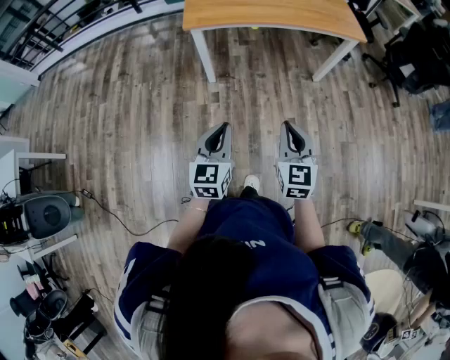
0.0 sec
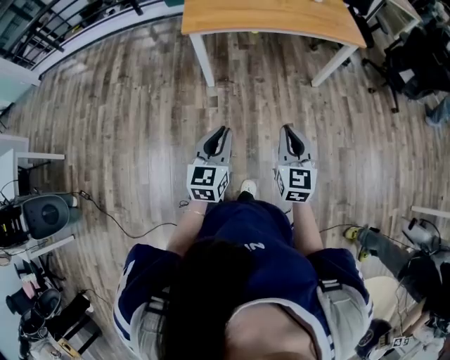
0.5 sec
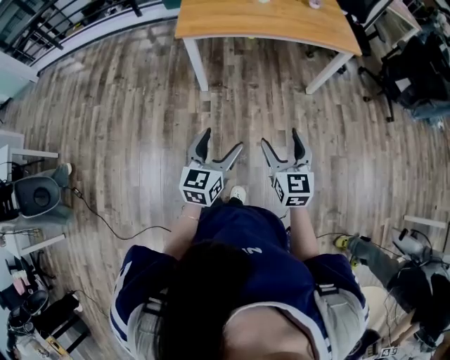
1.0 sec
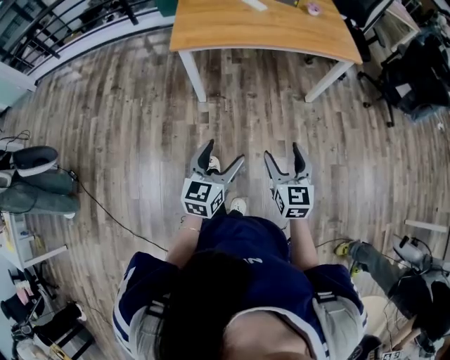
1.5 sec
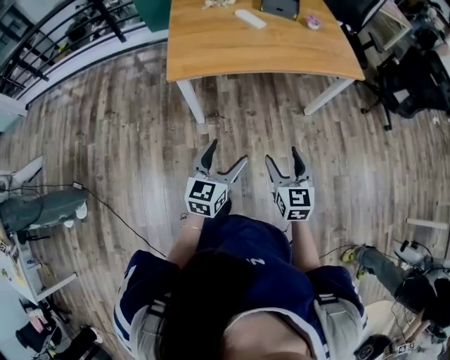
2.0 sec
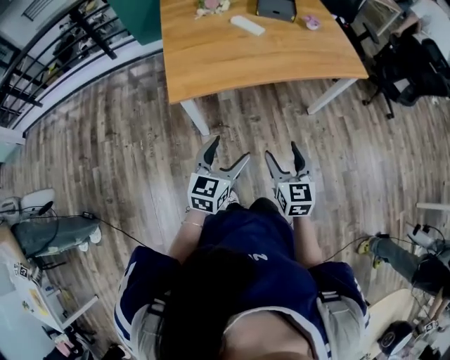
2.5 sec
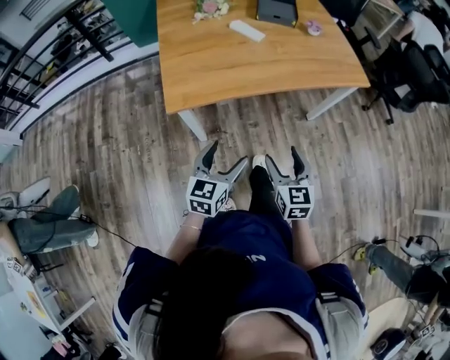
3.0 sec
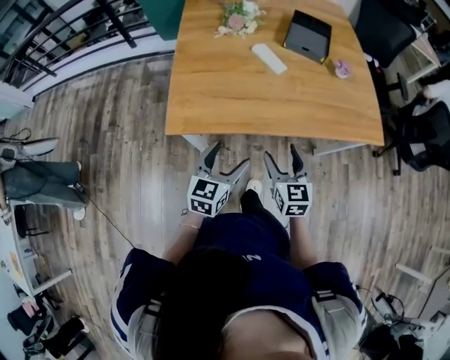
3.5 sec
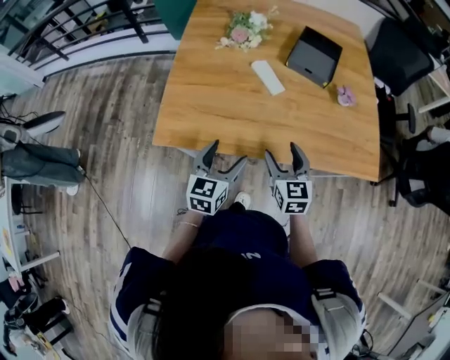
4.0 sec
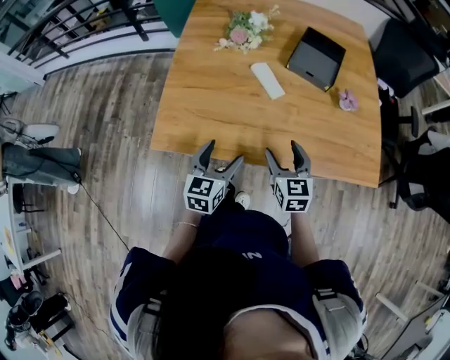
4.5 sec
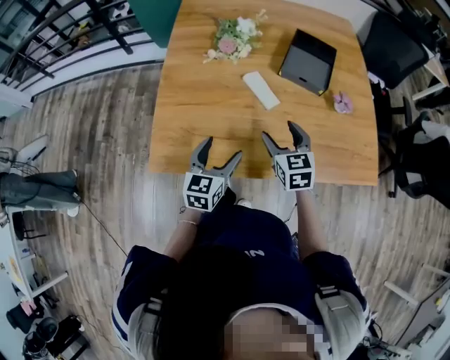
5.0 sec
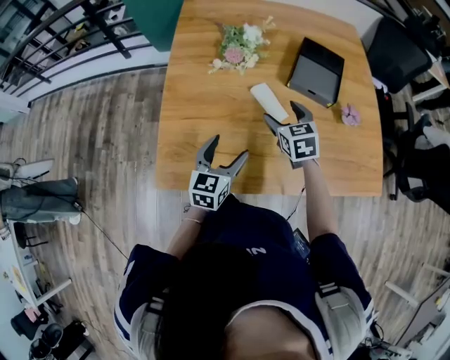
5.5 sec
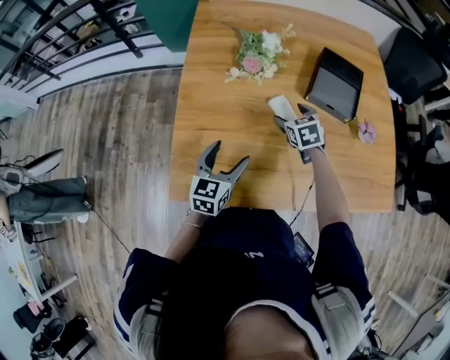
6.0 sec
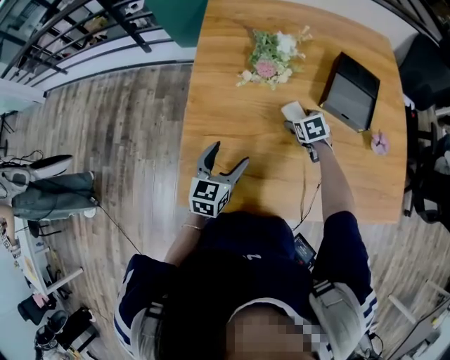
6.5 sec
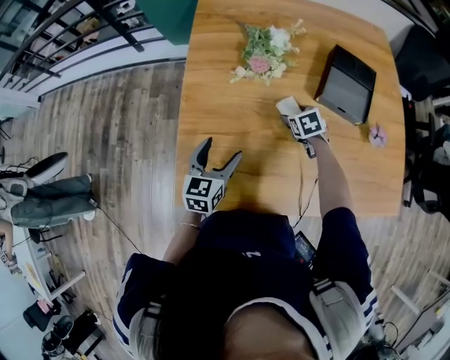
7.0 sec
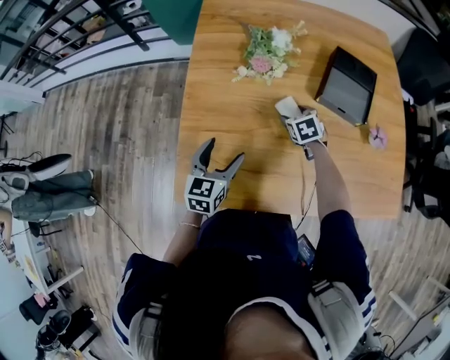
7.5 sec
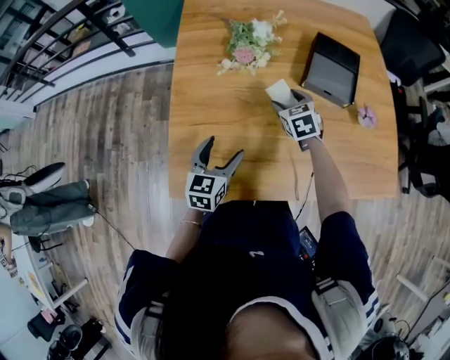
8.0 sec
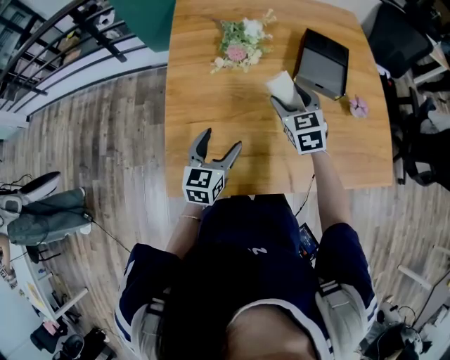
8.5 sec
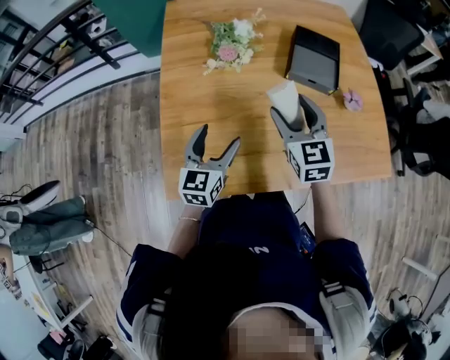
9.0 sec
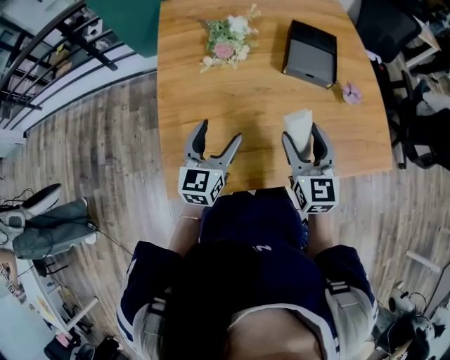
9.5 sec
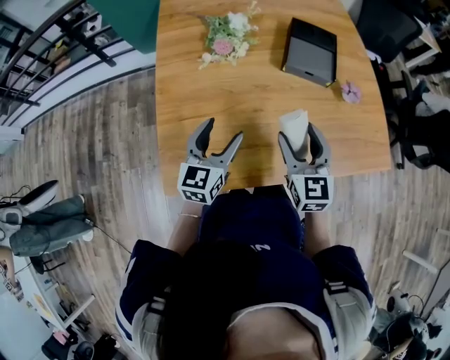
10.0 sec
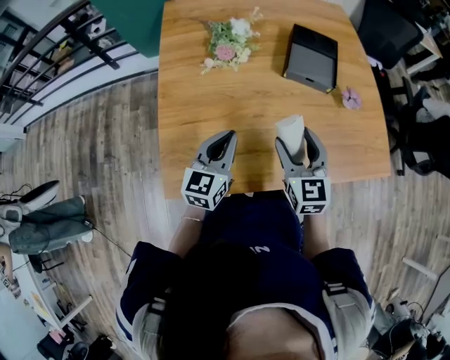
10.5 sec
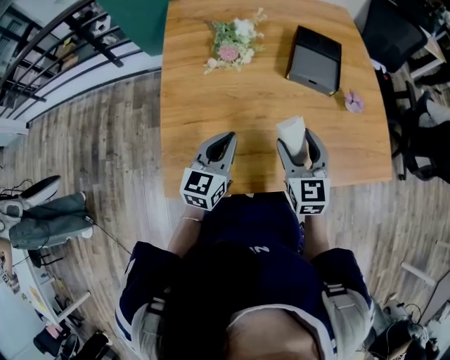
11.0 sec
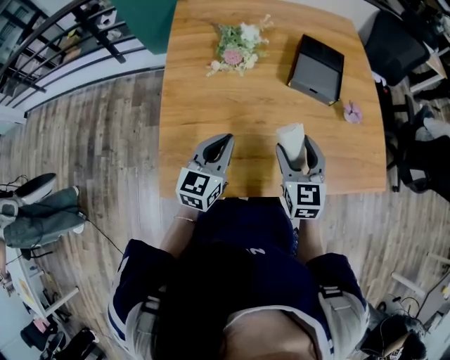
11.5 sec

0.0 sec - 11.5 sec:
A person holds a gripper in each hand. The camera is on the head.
0.0 sec - 2.0 sec: The two grippers go some 20 cm forward. The right gripper opens. The left gripper opens its fingers.
2.0 sec - 4.0 sec: Both grippers travel together forward, approximately 40 cm.
4.0 sec - 6.0 sec: The right gripper is displaced forward by some 30 cm, and rotates approximately 30 degrees. Meanwhile the left gripper travels forward and to the left by some 20 cm.
6.0 sec - 7.5 sec: The right gripper goes about 5 cm downward.
7.5 sec - 9.5 sec: The right gripper moves upward and backward, some 30 cm, and points its fingers about 40 degrees further upward. Meanwhile the left gripper travels upward by approximately 5 cm.
9.5 sec - 11.5 sec: The left gripper closes.

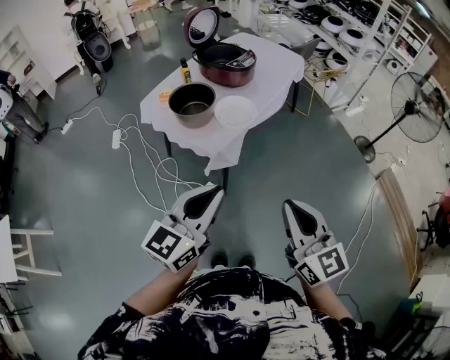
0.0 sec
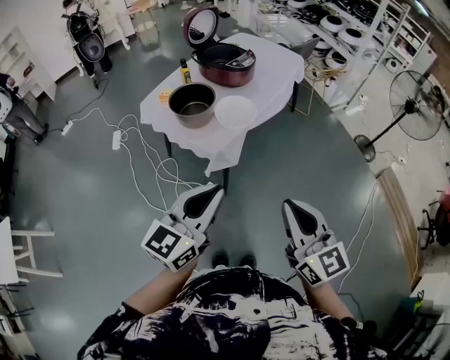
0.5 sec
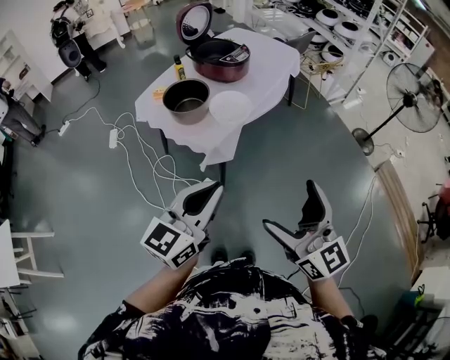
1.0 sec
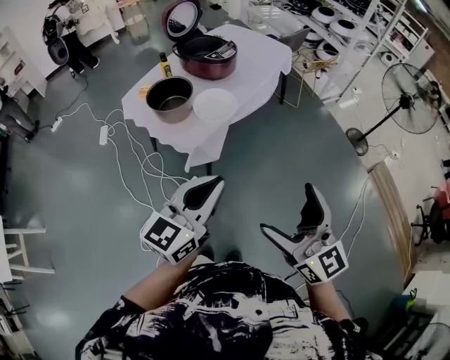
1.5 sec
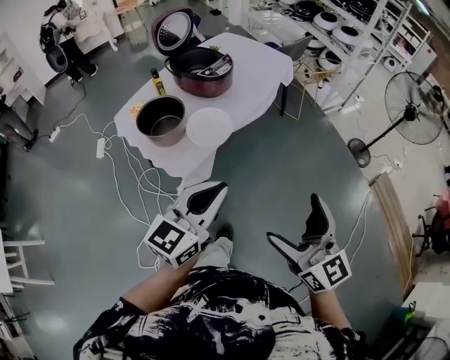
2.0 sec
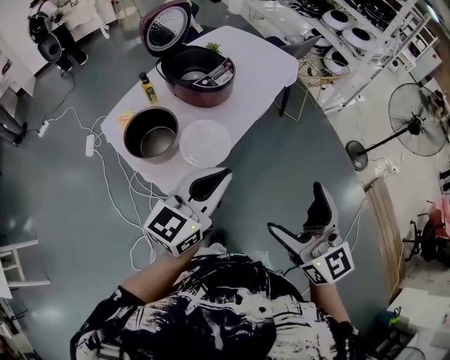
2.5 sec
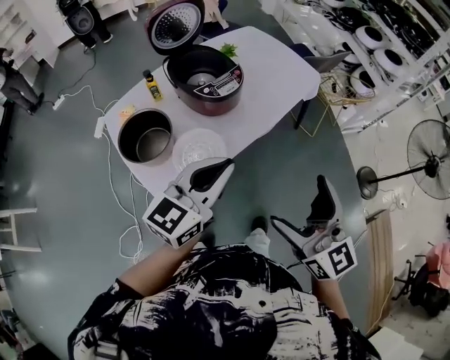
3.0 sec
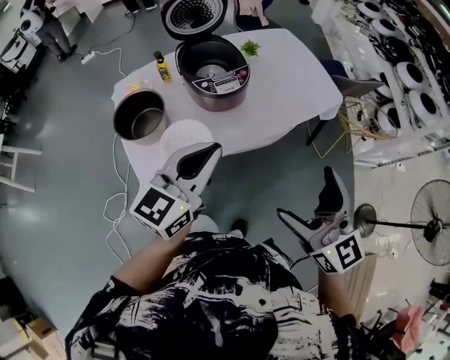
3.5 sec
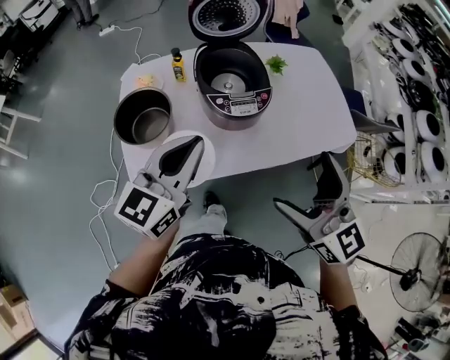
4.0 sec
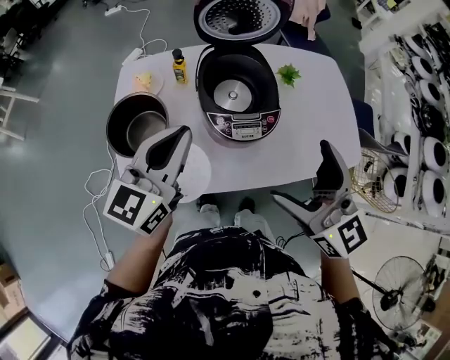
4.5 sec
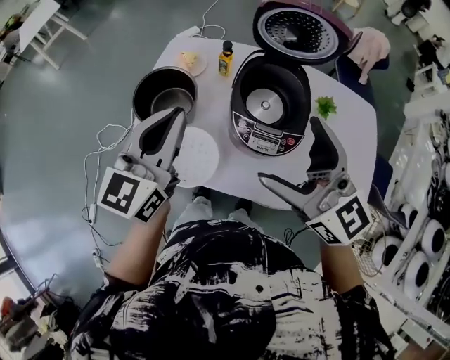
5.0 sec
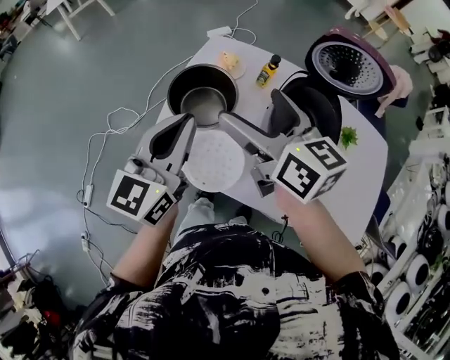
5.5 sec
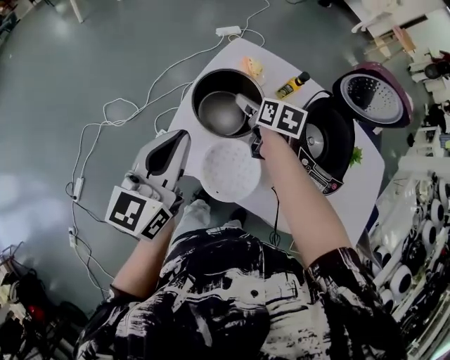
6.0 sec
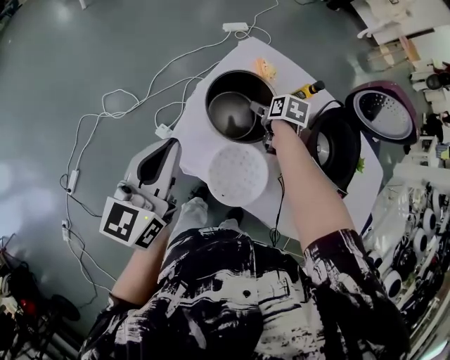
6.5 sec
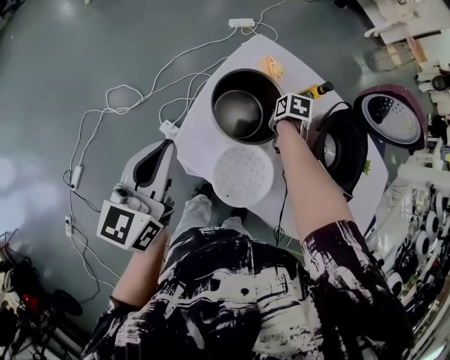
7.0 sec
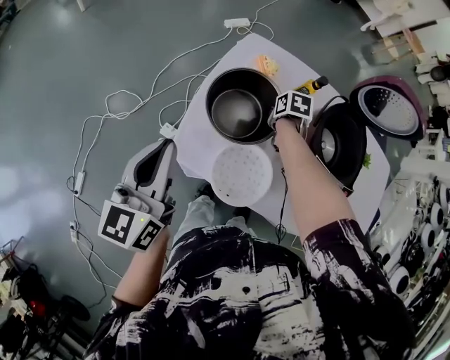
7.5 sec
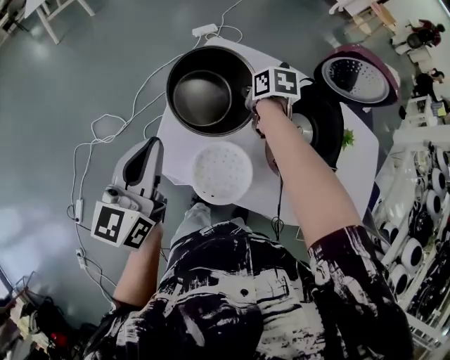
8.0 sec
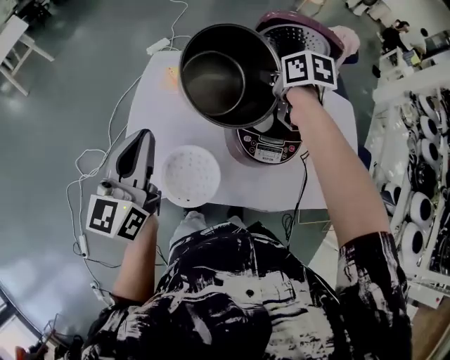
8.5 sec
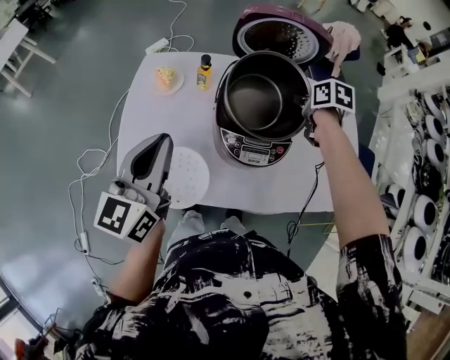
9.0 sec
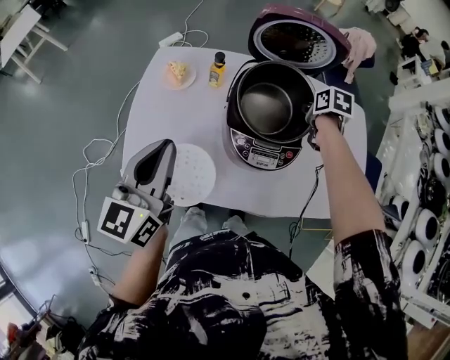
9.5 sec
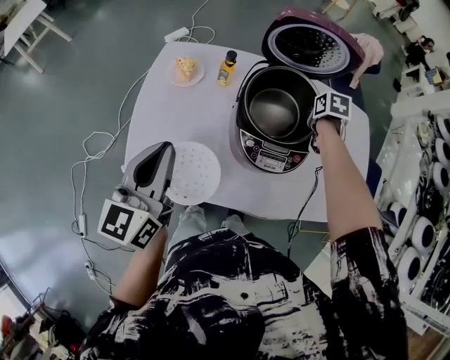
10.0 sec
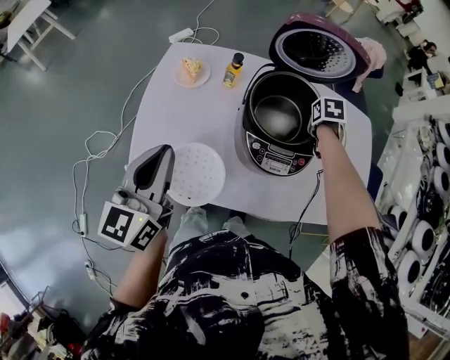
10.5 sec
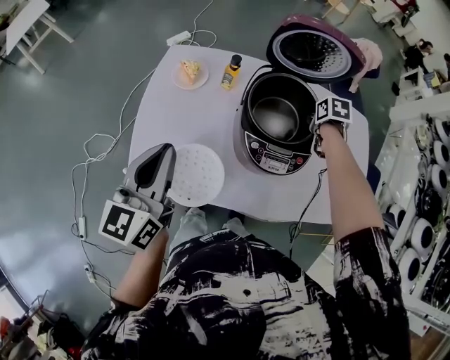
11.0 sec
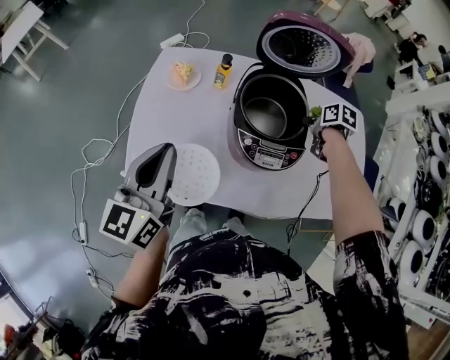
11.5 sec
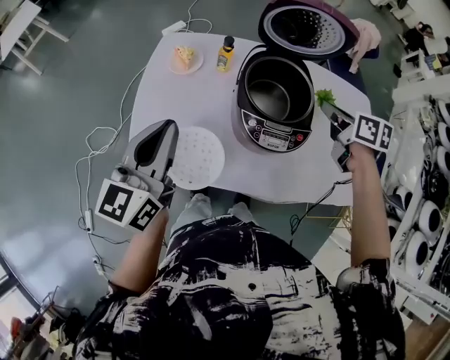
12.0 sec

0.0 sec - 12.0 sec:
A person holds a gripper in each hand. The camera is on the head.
0.0 sec - 2.0 sec: Both grippers move forward and to the right, about 20 cm. The right gripper opens up.
2.0 sec - 4.0 sec: The two grippers travel together, approximately 50 cm. The right gripper turns by about 50 degrees, while the left gripper swivels some 50 degrees.
4.0 sec - 6.0 sec: The right gripper ends up about 50 cm from where it was, and angles its fingers downward, by roughly 40 degrees. Meanwhile the left gripper shifts by roughly 25 cm, and changes its angle by roughly 50 degrees.
6.0 sec - 8.0 sec: The right gripper moves approximately 10 cm downward and comes back, and closes its fingers.
8.0 sec - 10.0 sec: The left gripper shifts by about 20 cm; the right gripper reaches roughly 15 cm upward, then returns, and turns by roughly 30 degrees.
10.0 sec - 12.0 sec: The right gripper moves upward and backward, approximately 15 cm, and changes its angle by about 30 degrees.

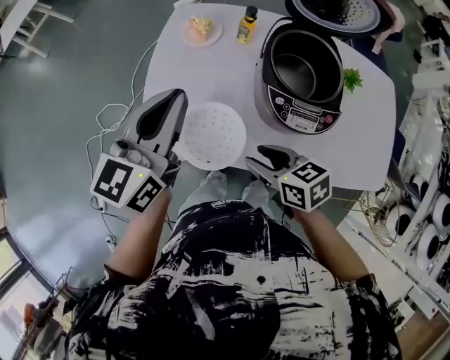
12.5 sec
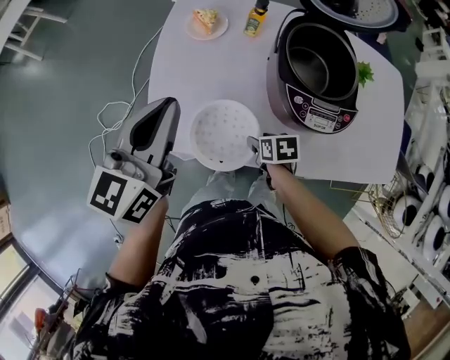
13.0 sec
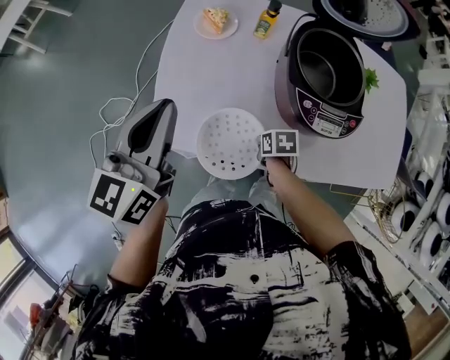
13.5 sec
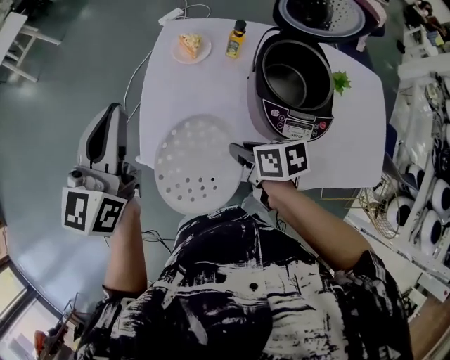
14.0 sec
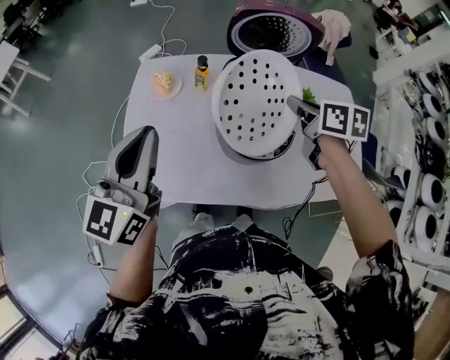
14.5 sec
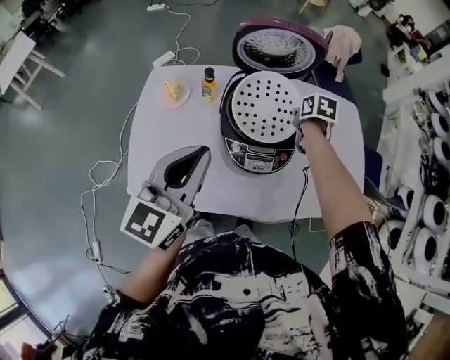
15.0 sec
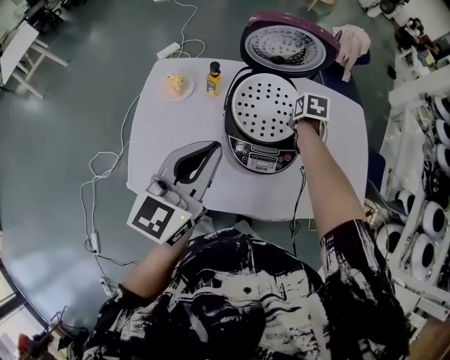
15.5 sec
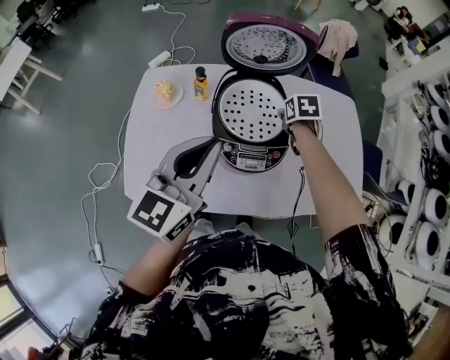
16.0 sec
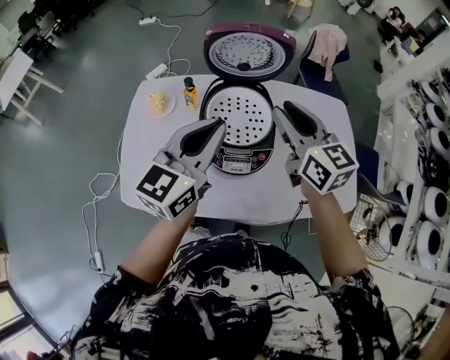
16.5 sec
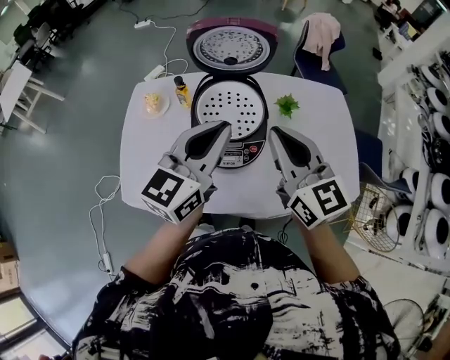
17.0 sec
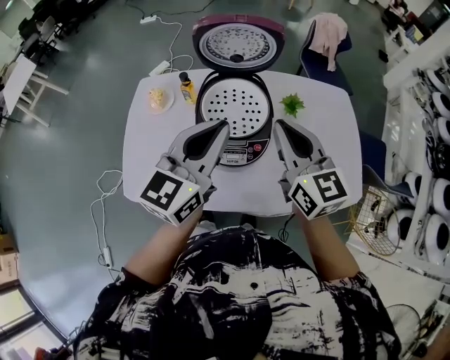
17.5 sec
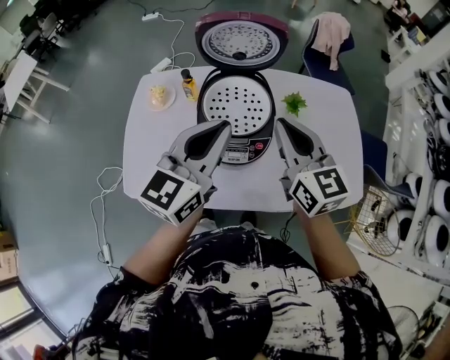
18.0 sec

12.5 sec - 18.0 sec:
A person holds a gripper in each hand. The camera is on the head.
12.5 sec - 14.5 sec: The right gripper heads to the right, forward and upward, covering about 30 cm, and swivels approximately 30 degrees; the left gripper goes roughly 5 cm upward, and reaches roughly 10 cm to the left, then returns.
14.5 sec - 16.0 sec: The left gripper heads to the right, covering about 15 cm. The right gripper moves downward, forward and to the right, approximately 20 cm, and rotates roughly 30 degrees.
16.0 sec - 18.0 sec: The left gripper shifts some 10 cm to the right, while the right gripper heads upward and backward, covering approximately 25 cm, and tips its fingers upward by about 60 degrees.
